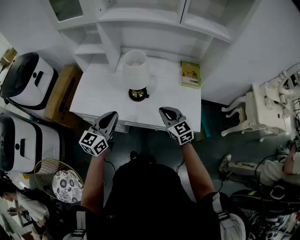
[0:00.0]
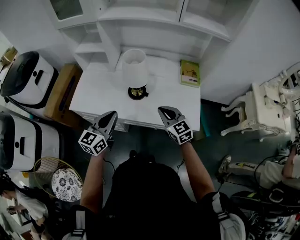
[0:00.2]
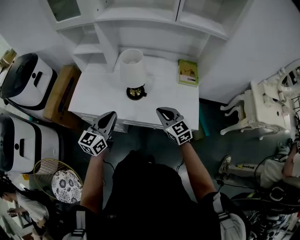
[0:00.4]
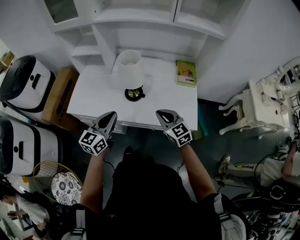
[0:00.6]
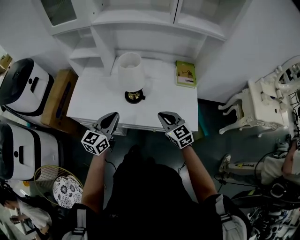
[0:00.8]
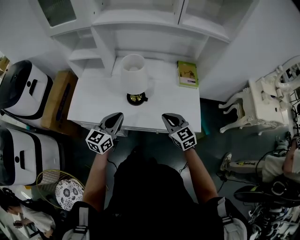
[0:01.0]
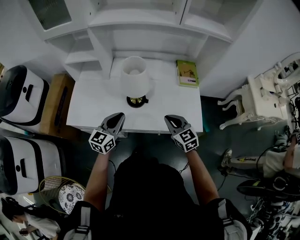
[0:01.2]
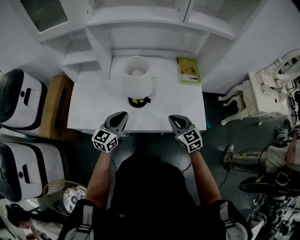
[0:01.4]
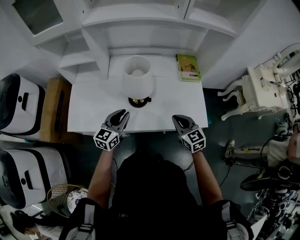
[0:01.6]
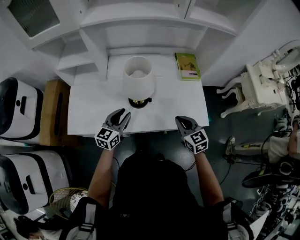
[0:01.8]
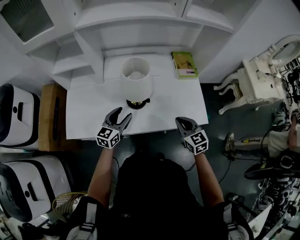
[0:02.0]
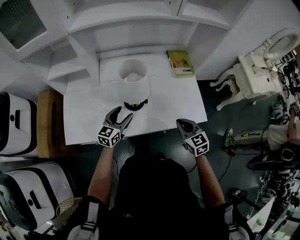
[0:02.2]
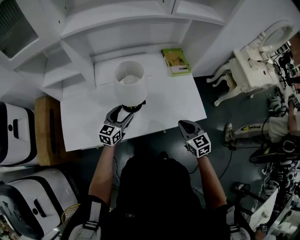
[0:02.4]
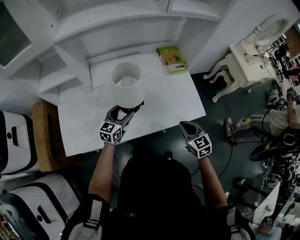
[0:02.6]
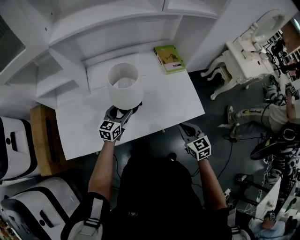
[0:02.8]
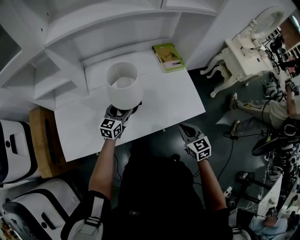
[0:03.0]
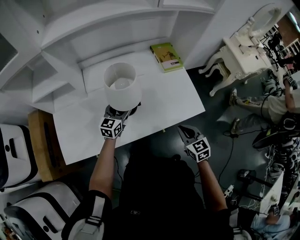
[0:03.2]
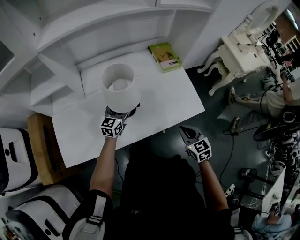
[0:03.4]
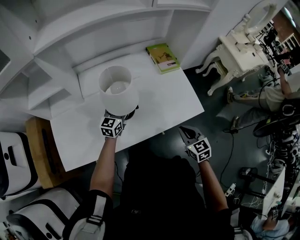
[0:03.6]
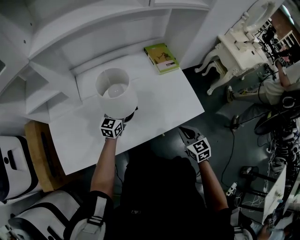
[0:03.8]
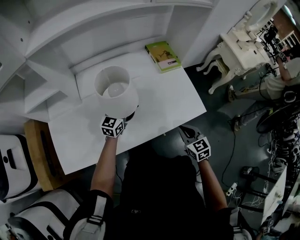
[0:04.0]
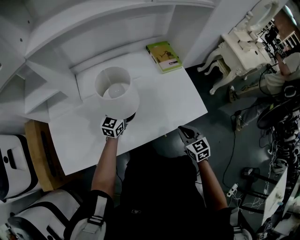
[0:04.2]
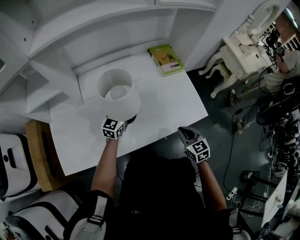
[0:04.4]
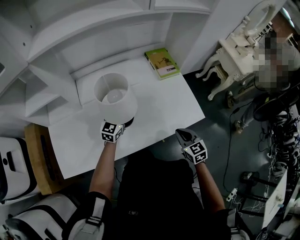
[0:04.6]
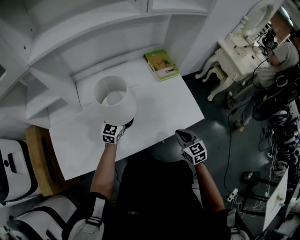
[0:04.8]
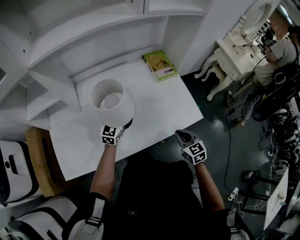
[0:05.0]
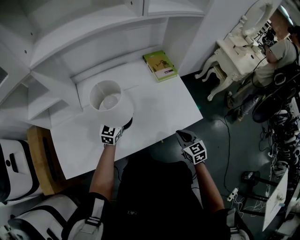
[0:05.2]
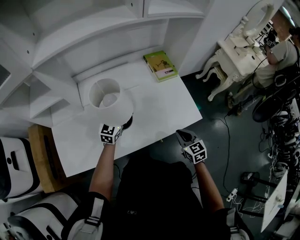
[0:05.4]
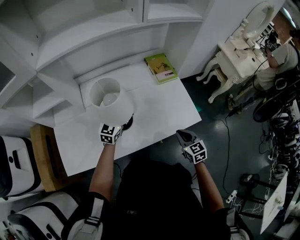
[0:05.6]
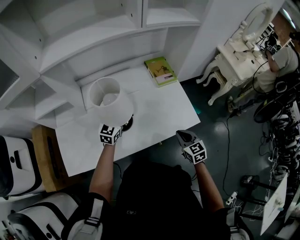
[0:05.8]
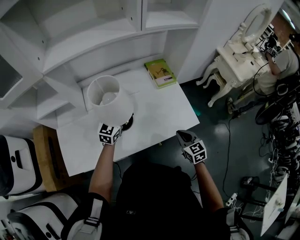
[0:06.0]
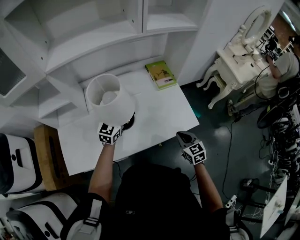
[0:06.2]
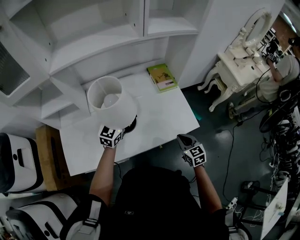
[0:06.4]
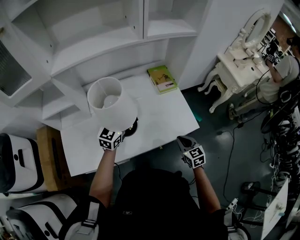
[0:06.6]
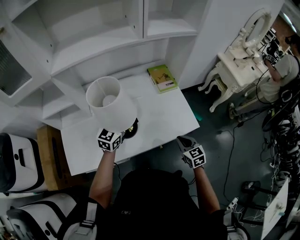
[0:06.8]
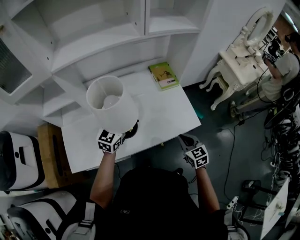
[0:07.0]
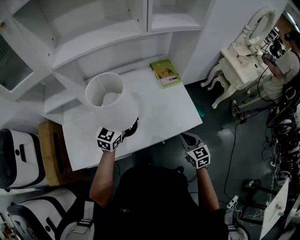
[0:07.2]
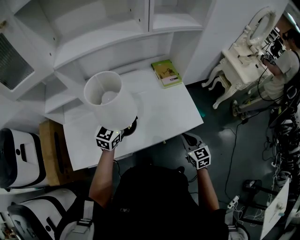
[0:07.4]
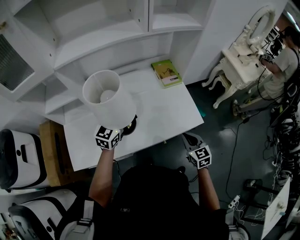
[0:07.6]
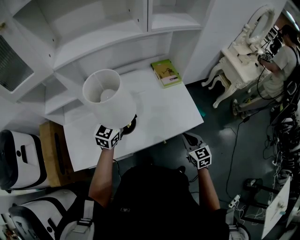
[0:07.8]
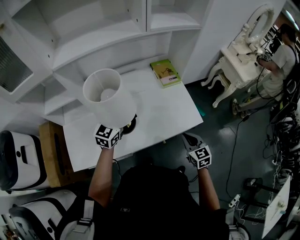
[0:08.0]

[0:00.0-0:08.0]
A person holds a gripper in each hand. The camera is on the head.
0:00.0 to 0:01.6: The right gripper shifts by approximately 5 cm; the left gripper is displaced forward and downward by approximately 15 cm.
0:01.6 to 0:03.2: The left gripper moves forward and downward, roughly 15 cm, and opens. The right gripper moves downward, roughly 5 cm, and rotates roughly 20 degrees.
0:03.2 to 0:04.8: The right gripper shifts by about 5 cm; the left gripper ends up approximately 5 cm from where it was, and closes its fingers.
0:04.8 to 0:06.4: The right gripper goes some 5 cm upward, while the left gripper heads upward, covering some 15 cm.
0:06.4 to 0:08.0: There are only small adjustments of the grippers.

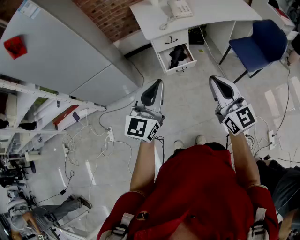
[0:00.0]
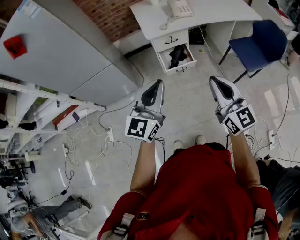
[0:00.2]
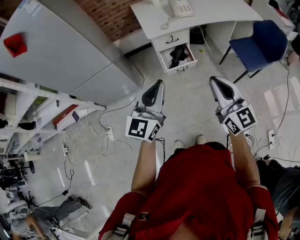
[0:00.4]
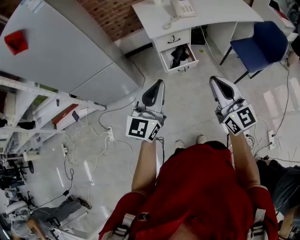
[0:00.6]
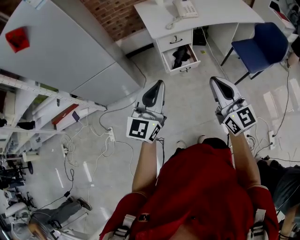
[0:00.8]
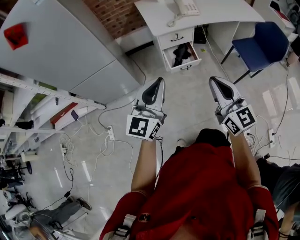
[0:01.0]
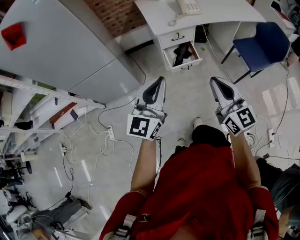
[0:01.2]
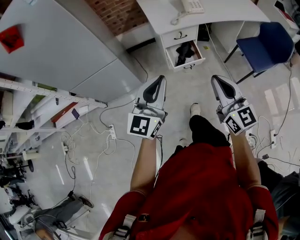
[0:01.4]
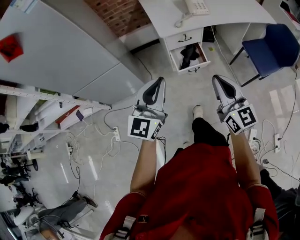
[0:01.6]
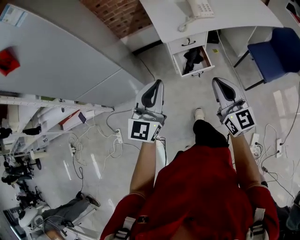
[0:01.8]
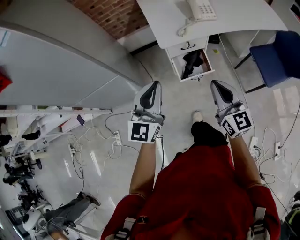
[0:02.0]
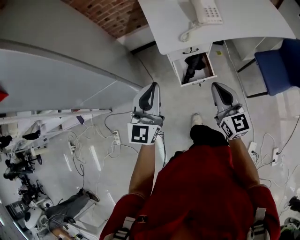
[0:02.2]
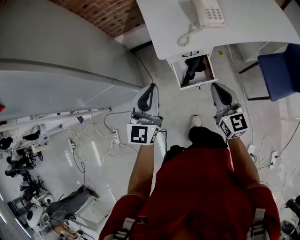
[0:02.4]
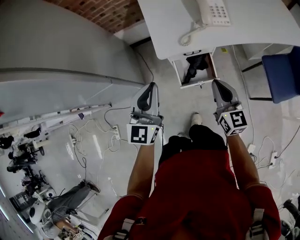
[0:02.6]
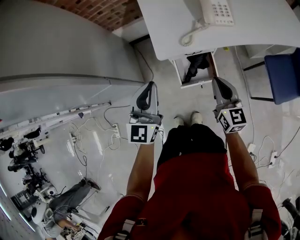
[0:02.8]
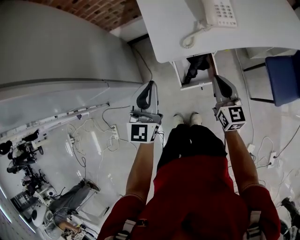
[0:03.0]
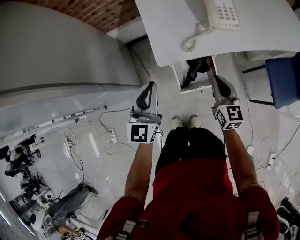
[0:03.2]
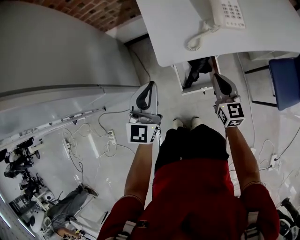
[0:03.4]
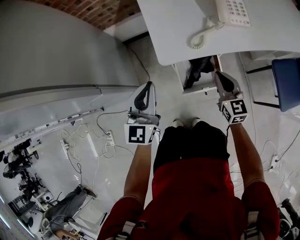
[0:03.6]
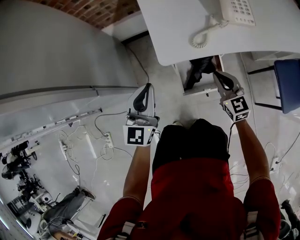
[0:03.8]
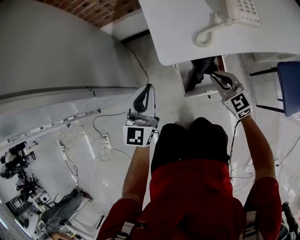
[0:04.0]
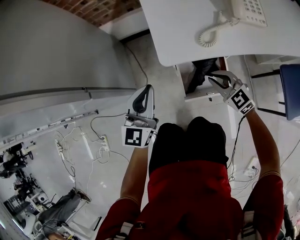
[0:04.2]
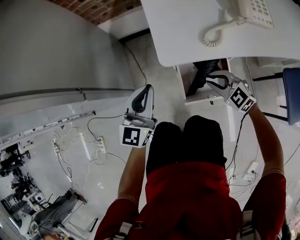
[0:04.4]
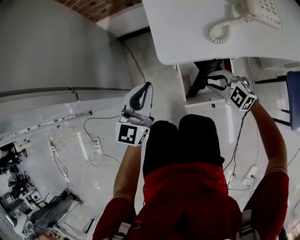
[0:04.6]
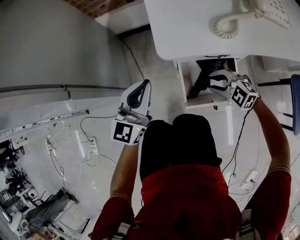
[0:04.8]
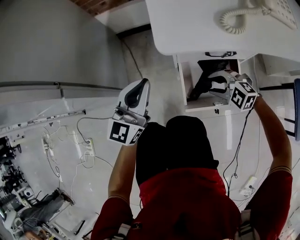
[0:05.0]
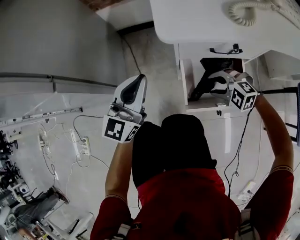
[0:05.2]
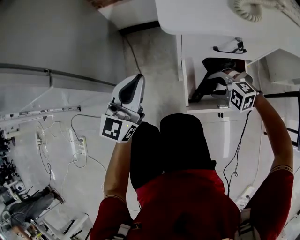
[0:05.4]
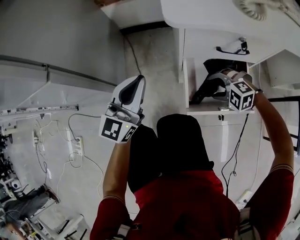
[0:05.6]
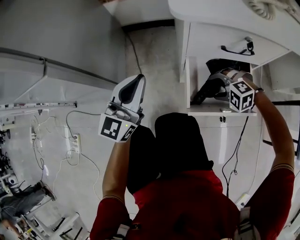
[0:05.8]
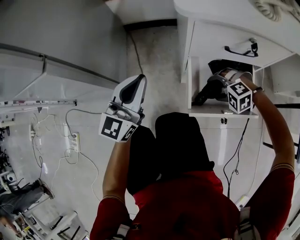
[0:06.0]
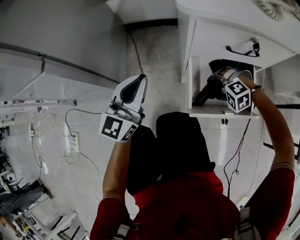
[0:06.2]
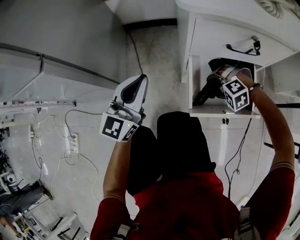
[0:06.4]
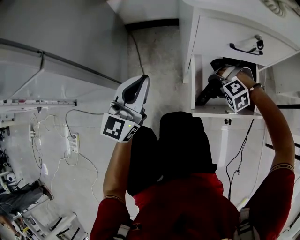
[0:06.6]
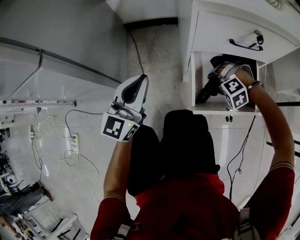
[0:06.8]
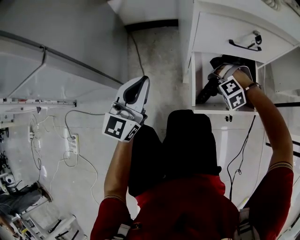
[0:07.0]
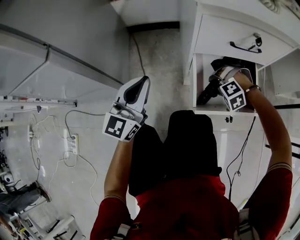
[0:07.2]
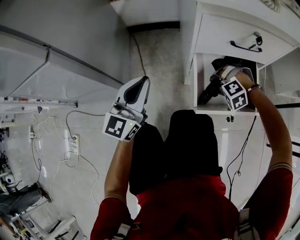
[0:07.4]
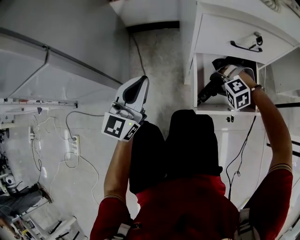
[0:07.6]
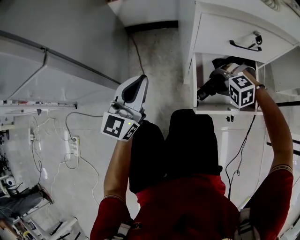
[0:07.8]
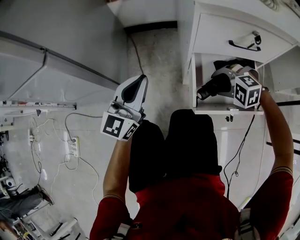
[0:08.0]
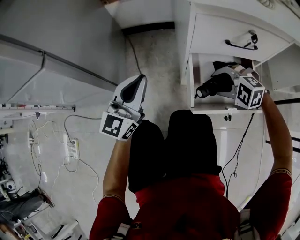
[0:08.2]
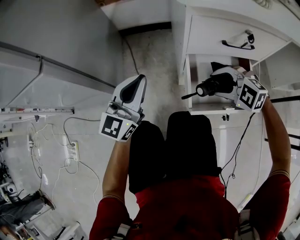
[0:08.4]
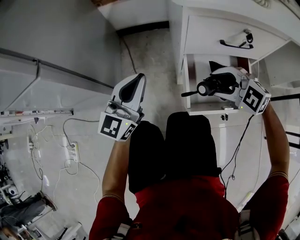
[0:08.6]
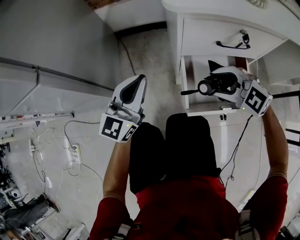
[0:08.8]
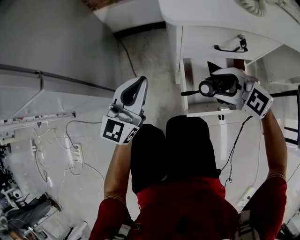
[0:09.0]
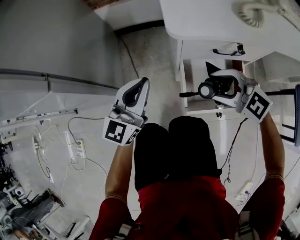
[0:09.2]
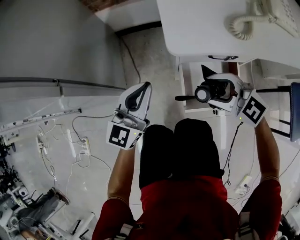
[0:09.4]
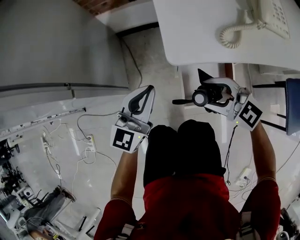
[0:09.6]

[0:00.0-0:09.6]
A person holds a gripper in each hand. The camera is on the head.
0:00.0 to 0:01.6: The right gripper shifts about 10 cm forward and to the left; the left gripper shifts some 10 cm to the left and forward.
0:01.6 to 0:03.2: Both grippers move forward and downward, roughly 40 cm. The right gripper turns by some 20 degrees.
0:03.2 to 0:04.8: Both grippers move downward, approximately 30 cm. The right gripper swivels about 80 degrees, and opens its fingers.
0:04.8 to 0:06.4: The right gripper is displaced downward by roughly 20 cm, tilts its fingers about 30 degrees downward, and opens its fingers. Meanwhile the left gripper goes about 10 cm downward.
0:06.4 to 0:08.0: The right gripper moves upward, some 5 cm.
0:08.0 to 0:09.6: The left gripper shifts approximately 15 cm upward, while the right gripper goes about 30 cm upward, and angles its fingers upward, by some 40 degrees.

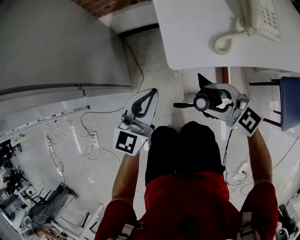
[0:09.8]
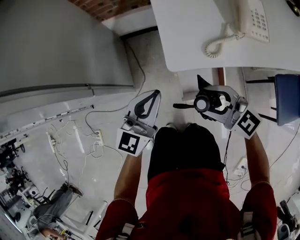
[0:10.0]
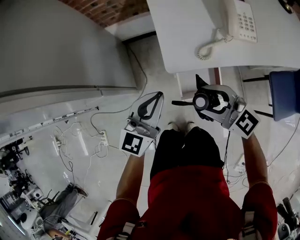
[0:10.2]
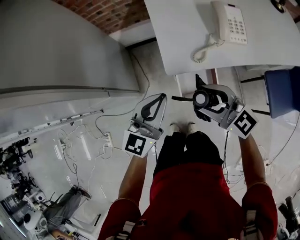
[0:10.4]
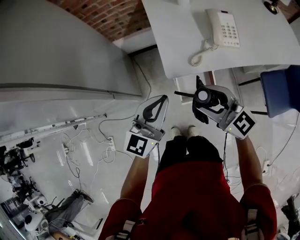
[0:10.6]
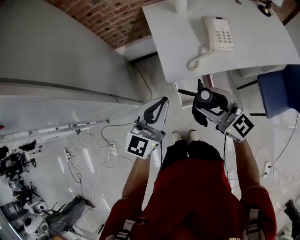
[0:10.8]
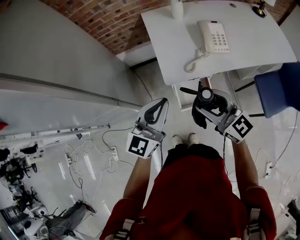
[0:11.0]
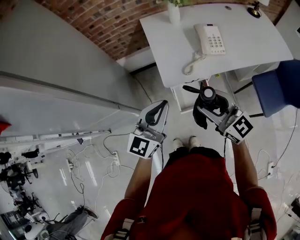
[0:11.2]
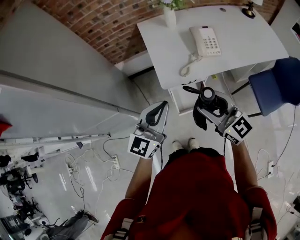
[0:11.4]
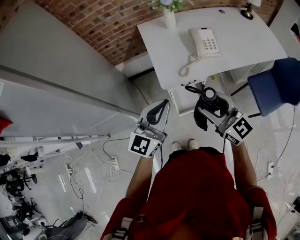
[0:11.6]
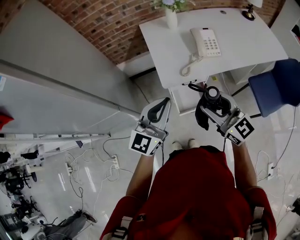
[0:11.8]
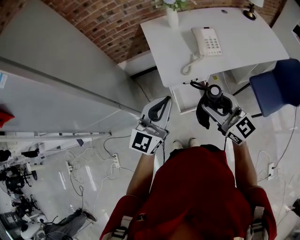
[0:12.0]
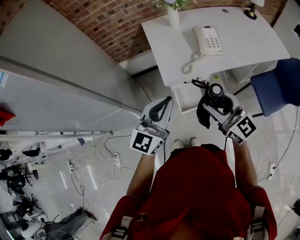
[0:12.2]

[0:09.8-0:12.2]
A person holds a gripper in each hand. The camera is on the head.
0:09.8 to 0:11.0: The two grippers go about 30 cm upward. The right gripper swivels approximately 40 degrees.
0:11.0 to 0:12.2: The right gripper moves approximately 5 cm.

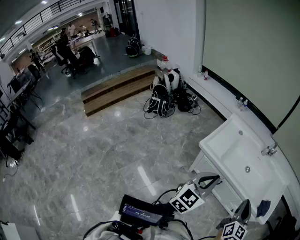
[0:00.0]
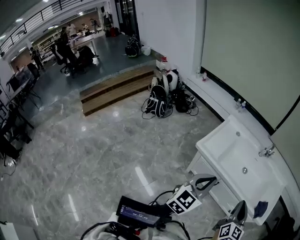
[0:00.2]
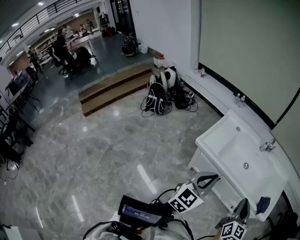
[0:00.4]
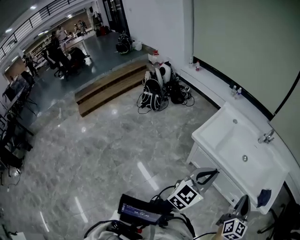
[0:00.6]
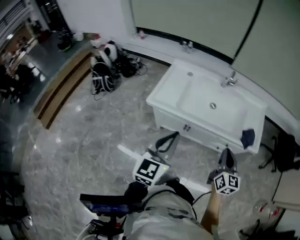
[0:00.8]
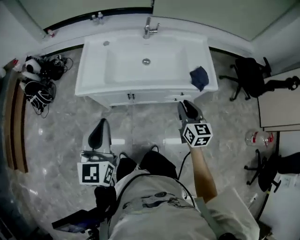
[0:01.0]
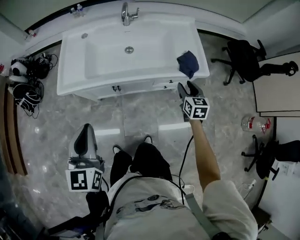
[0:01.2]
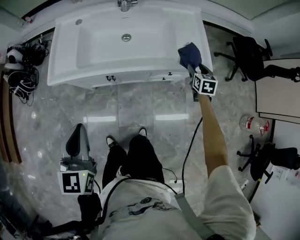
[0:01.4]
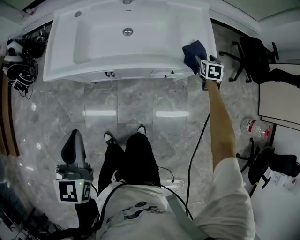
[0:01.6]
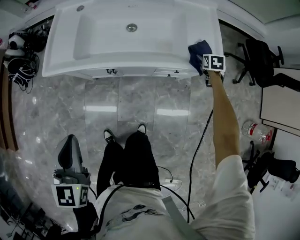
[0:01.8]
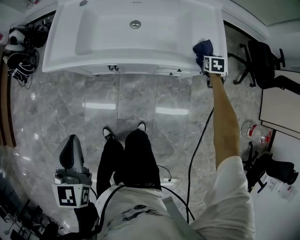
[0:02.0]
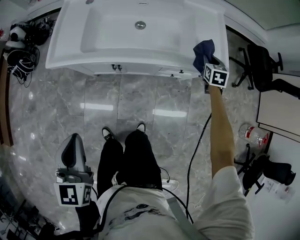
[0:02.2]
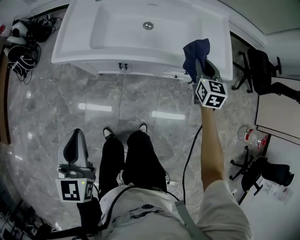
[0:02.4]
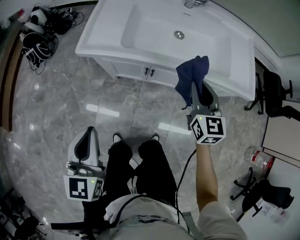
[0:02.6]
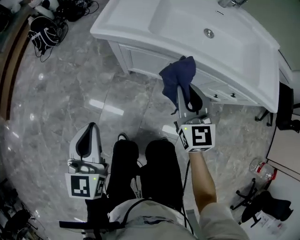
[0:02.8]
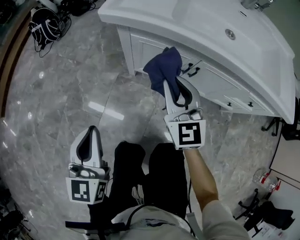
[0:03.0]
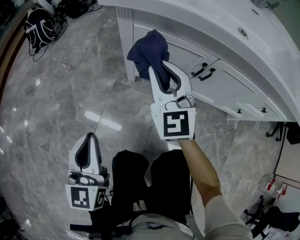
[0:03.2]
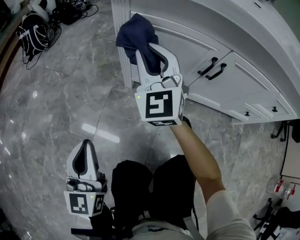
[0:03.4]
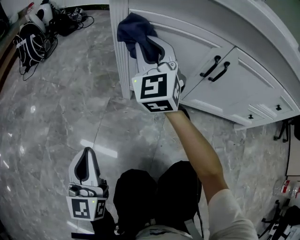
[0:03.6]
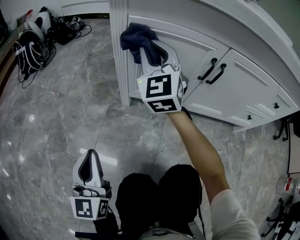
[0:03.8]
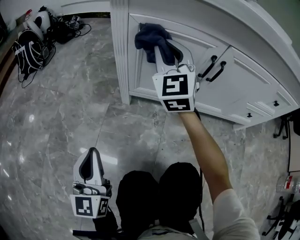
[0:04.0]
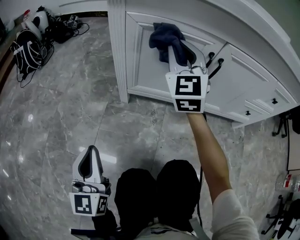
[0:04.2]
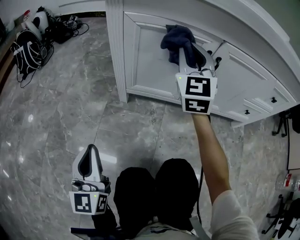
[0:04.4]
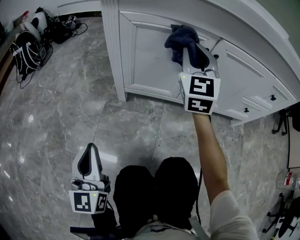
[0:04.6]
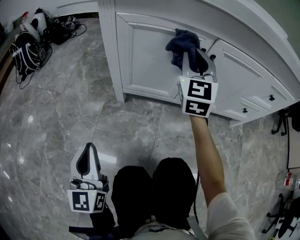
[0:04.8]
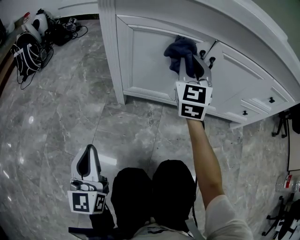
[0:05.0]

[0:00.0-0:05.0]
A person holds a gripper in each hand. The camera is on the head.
0:00.0 to 0:01.6: The left gripper is displaced to the right and downward by about 15 cm, and turns by about 20 degrees. Meanwhile the right gripper is displaced to the right, downward and forward by about 60 cm, points its fingers about 40 degrees further downward, and opens up.
0:01.6 to 0:03.4: The left gripper shifts roughly 50 cm downward, and swivels roughly 30 degrees; the right gripper swings up and down, about 30 cm each way, with 2 reversals, points its fingers some 40 degrees further upward, and closes.
0:03.4 to 0:05.0: The left gripper goes approximately 5 cm downward, while the right gripper moves to the right, some 20 cm, and rotates some 20 degrees.
